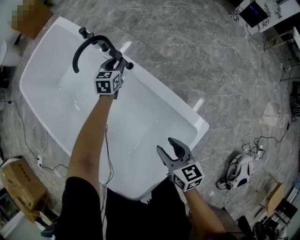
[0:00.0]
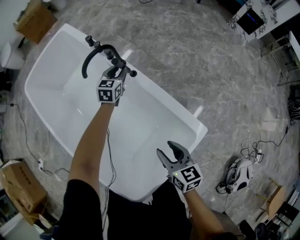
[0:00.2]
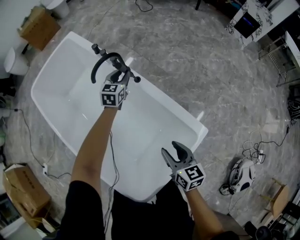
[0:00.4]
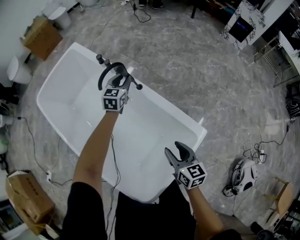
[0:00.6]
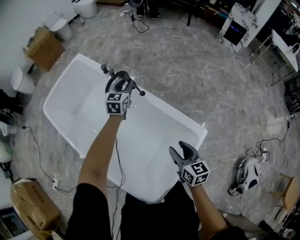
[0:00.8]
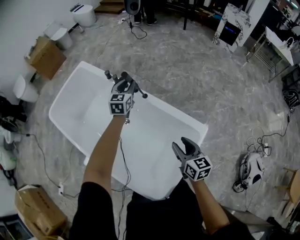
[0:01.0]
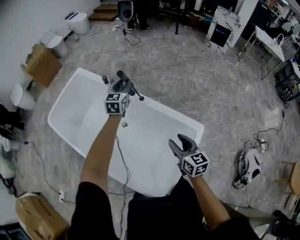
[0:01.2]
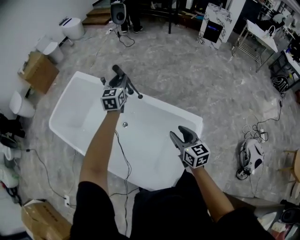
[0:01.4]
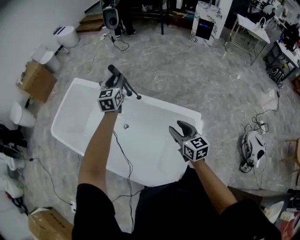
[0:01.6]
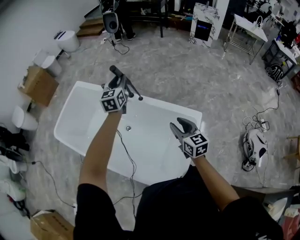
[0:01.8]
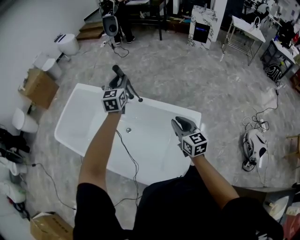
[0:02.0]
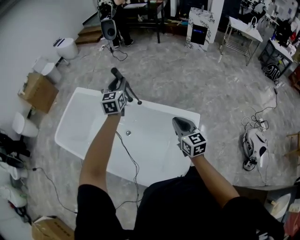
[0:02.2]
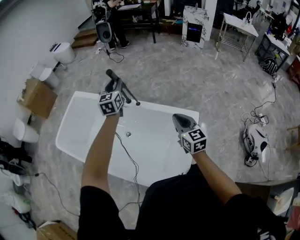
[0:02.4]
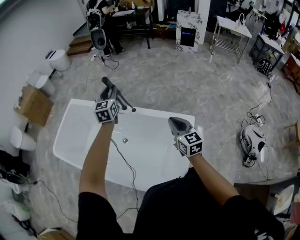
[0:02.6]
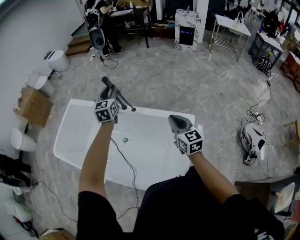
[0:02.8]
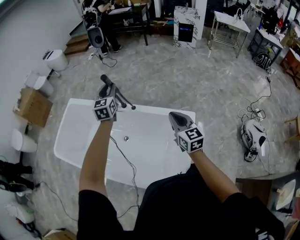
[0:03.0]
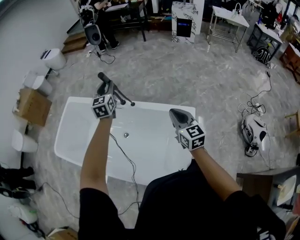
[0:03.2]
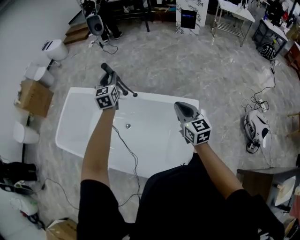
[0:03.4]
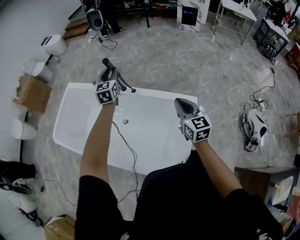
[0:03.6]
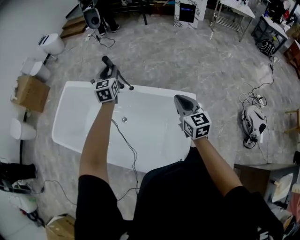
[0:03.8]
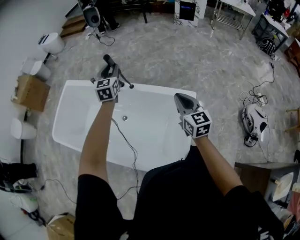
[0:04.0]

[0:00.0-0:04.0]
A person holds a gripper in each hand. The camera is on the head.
0.0 to 1.4 s: The left gripper is displaced upward by roughly 40 cm, and turns by approximately 20 degrees, while the right gripper shifts roughly 25 cm upward, and turns by approximately 20 degrees.
1.4 to 2.6 s: The right gripper moves upward, approximately 10 cm, and closes. The left gripper heads upward and backward, covering roughly 10 cm.
2.6 to 4.0 s: The left gripper ends up roughly 5 cm from where it was.

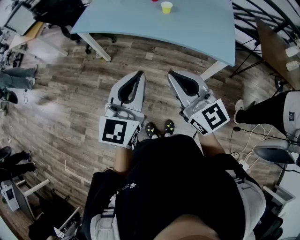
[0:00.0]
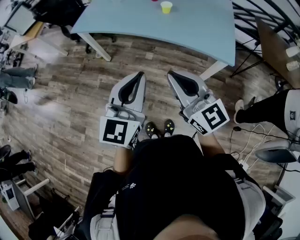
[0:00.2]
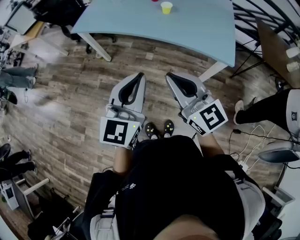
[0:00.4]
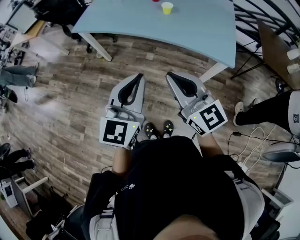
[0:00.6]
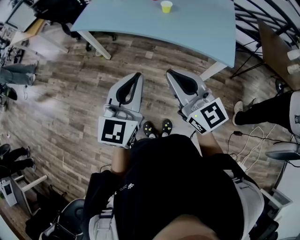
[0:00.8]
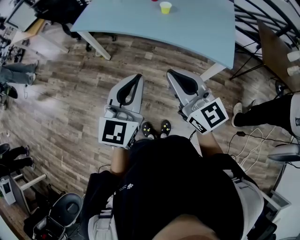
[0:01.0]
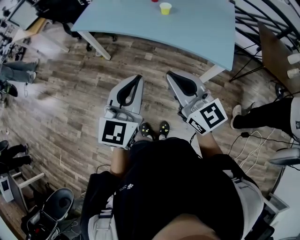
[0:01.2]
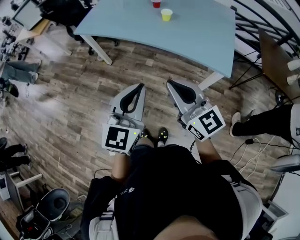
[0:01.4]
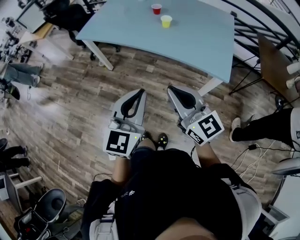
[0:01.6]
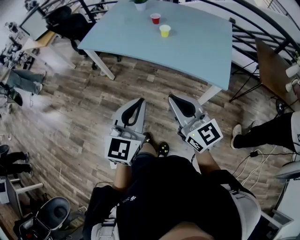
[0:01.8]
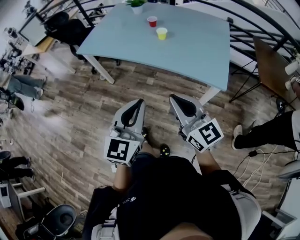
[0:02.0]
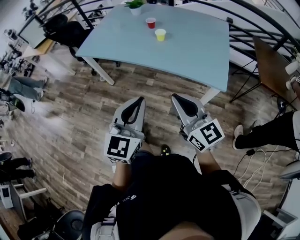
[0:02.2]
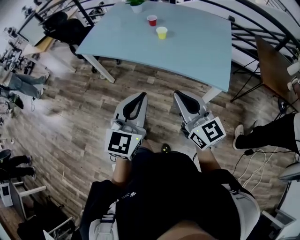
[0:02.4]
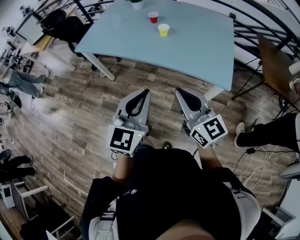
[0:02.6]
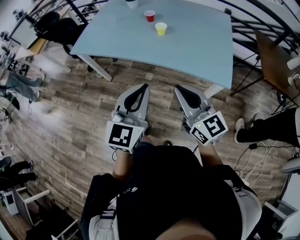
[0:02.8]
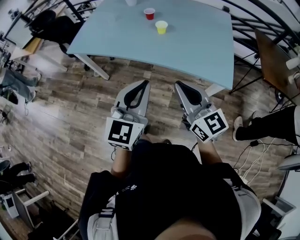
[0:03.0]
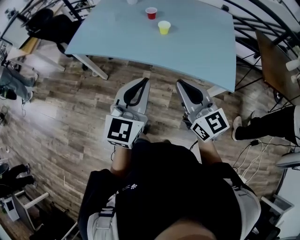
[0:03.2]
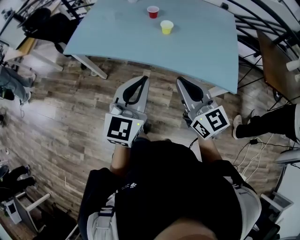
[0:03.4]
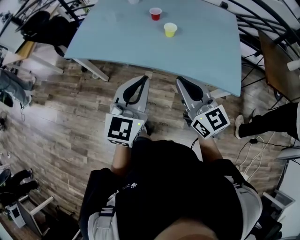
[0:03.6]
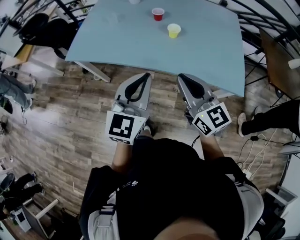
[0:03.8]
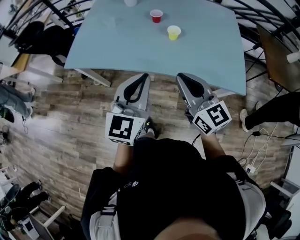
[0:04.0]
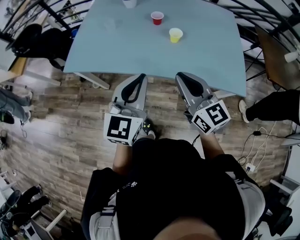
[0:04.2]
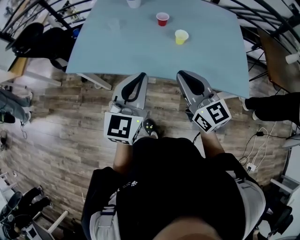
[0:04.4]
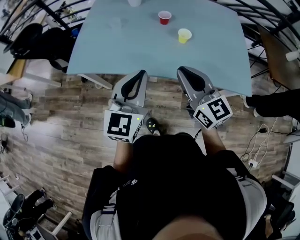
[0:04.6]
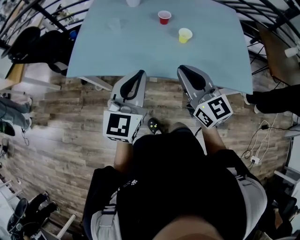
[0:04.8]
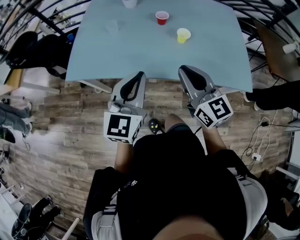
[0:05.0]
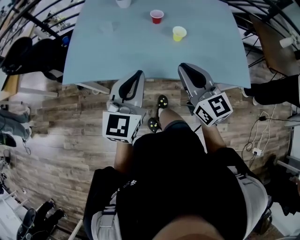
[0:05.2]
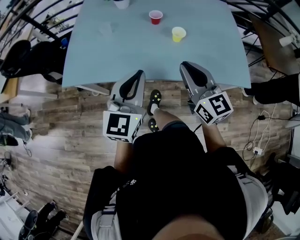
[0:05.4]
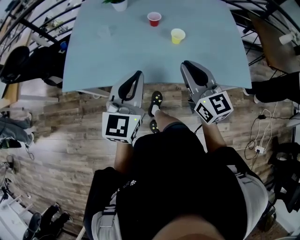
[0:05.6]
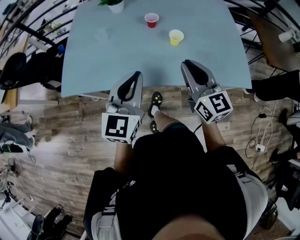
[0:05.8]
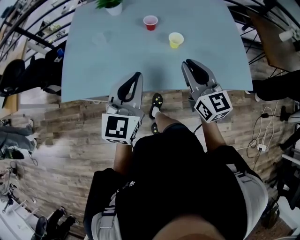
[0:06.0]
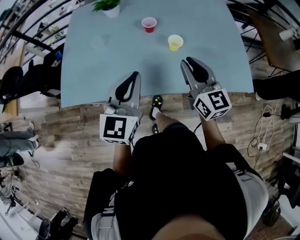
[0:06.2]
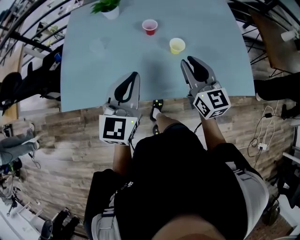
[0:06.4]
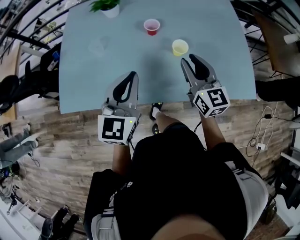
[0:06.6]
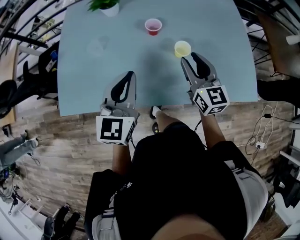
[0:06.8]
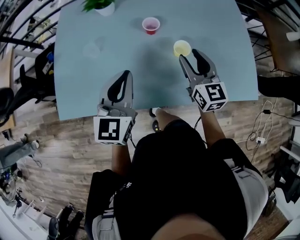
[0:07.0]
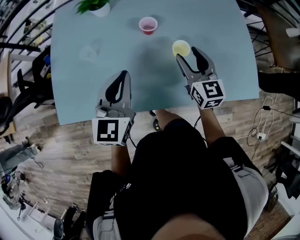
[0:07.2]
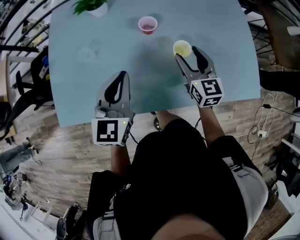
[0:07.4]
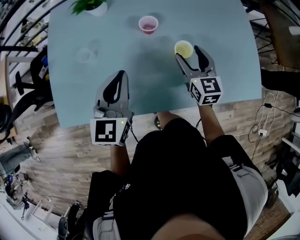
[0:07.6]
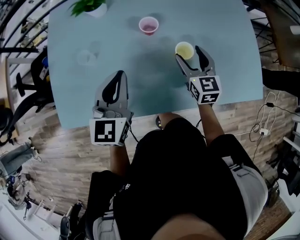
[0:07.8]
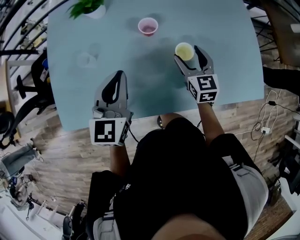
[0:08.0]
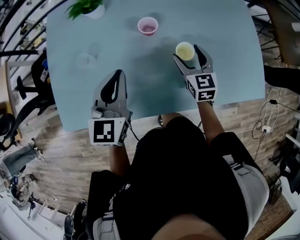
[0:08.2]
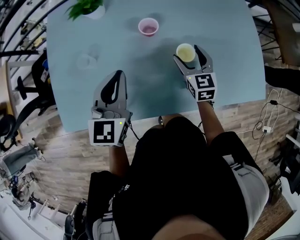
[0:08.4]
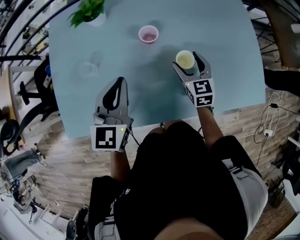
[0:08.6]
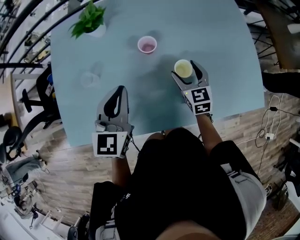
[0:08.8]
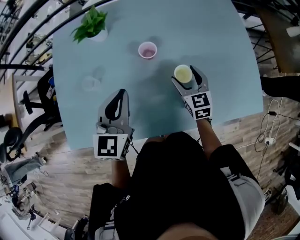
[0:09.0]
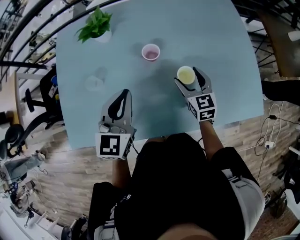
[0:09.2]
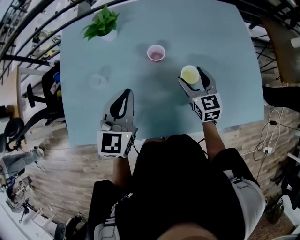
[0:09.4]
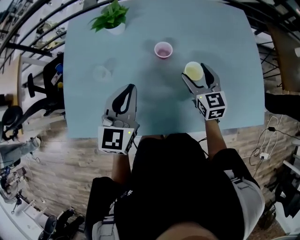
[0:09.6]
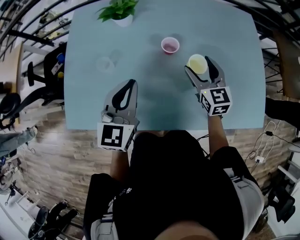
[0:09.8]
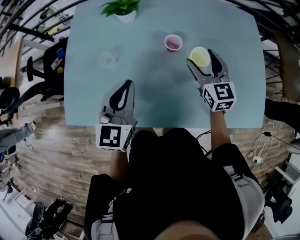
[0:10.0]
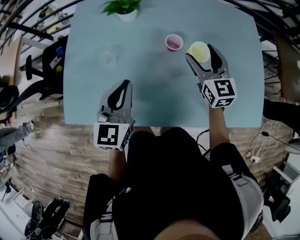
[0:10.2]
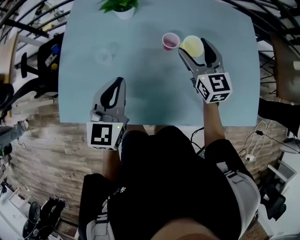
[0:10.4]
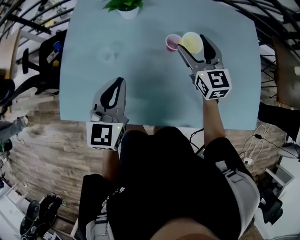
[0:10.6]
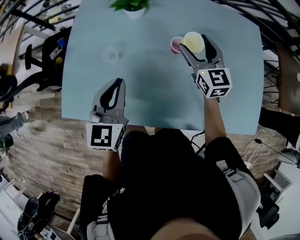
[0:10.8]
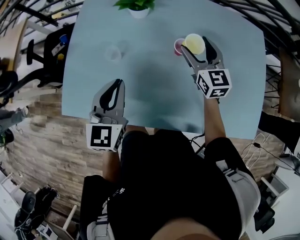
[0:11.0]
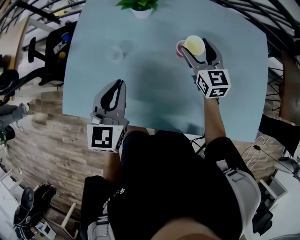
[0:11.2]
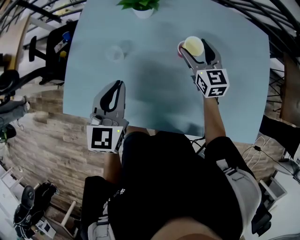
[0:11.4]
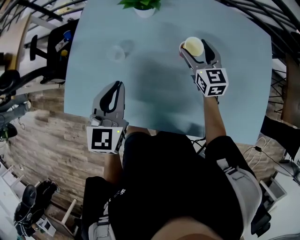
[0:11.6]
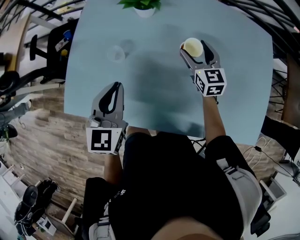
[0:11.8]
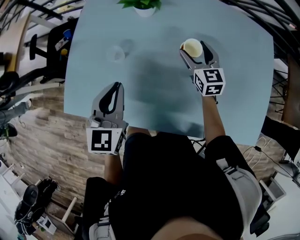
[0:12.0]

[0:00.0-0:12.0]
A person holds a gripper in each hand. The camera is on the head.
0.0 to 1.6 s: Both grippers move to the right, roughly 5 cm.
1.6 to 3.0 s: The grippers both shift forward by approximately 10 cm.
3.0 to 4.4 s: Both grippers move forward and to the left, approximately 25 cm.
4.4 to 6.0 s: Both grippers move forward, roughly 10 cm.
6.0 to 7.6 s: The right gripper moves forward and downward, roughly 25 cm, and opens. Meanwhile the left gripper goes about 20 cm forward.
7.6 to 9.0 s: The right gripper changes place by about 5 cm.
9.0 to 10.4 s: The left gripper shifts some 10 cm to the left, while the right gripper travels upward, to the left and forward by approximately 15 cm.
10.4 to 12.0 s: The right gripper is displaced downward and forward by about 10 cm.

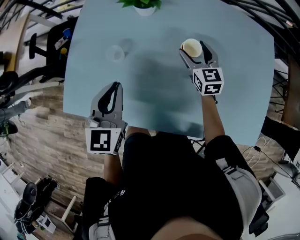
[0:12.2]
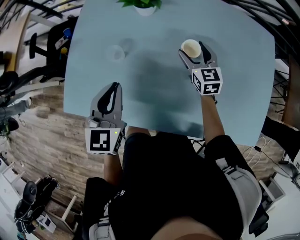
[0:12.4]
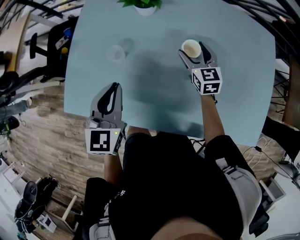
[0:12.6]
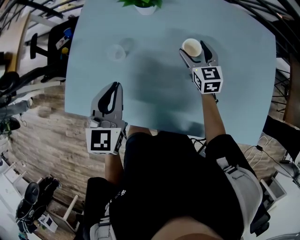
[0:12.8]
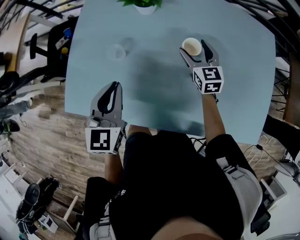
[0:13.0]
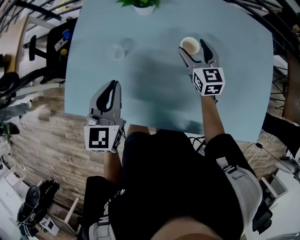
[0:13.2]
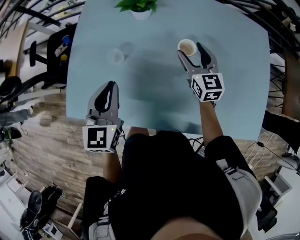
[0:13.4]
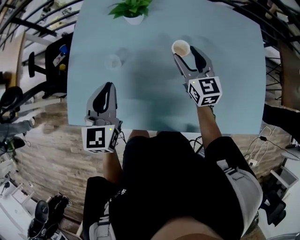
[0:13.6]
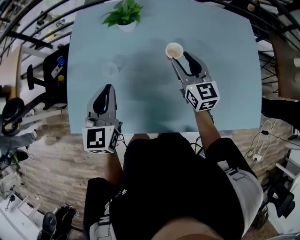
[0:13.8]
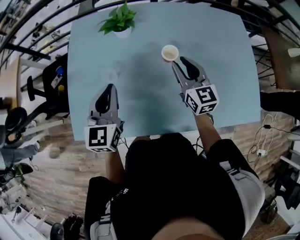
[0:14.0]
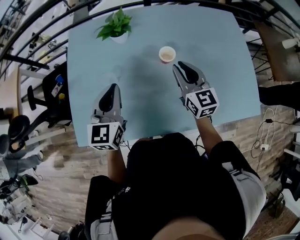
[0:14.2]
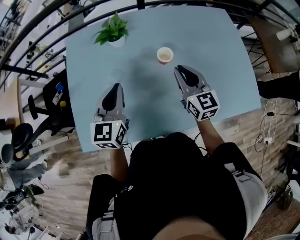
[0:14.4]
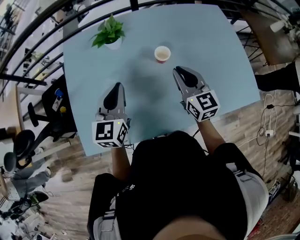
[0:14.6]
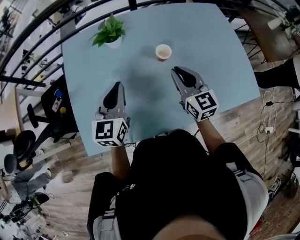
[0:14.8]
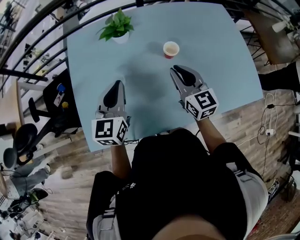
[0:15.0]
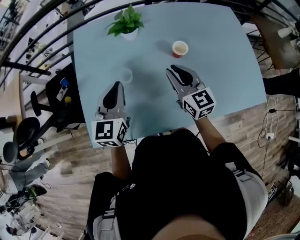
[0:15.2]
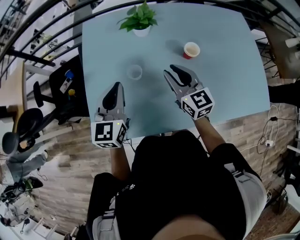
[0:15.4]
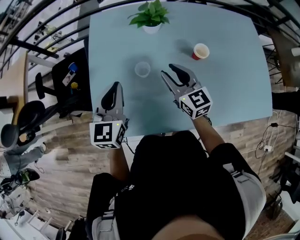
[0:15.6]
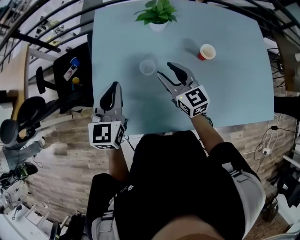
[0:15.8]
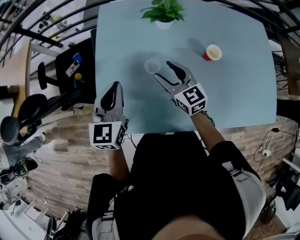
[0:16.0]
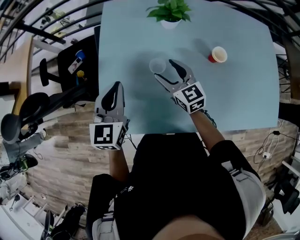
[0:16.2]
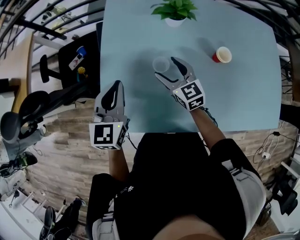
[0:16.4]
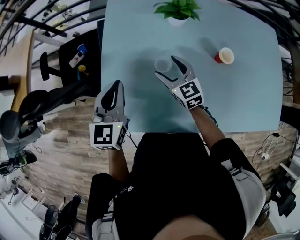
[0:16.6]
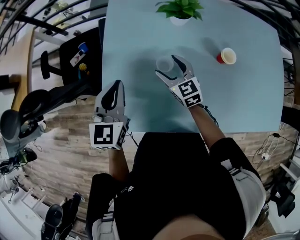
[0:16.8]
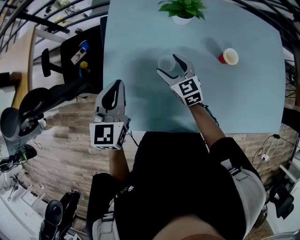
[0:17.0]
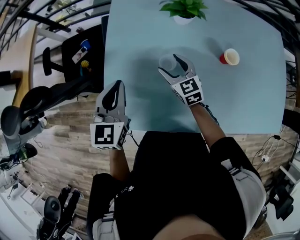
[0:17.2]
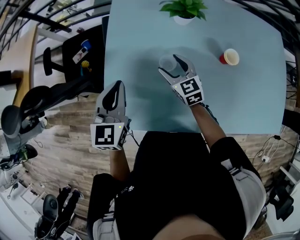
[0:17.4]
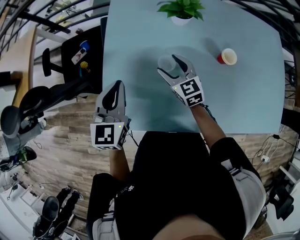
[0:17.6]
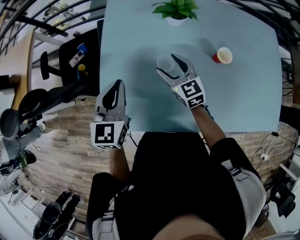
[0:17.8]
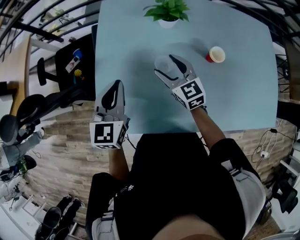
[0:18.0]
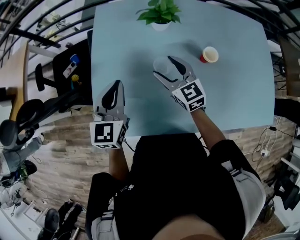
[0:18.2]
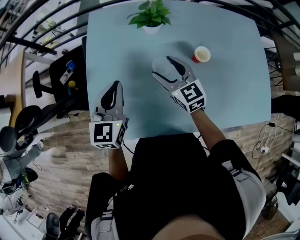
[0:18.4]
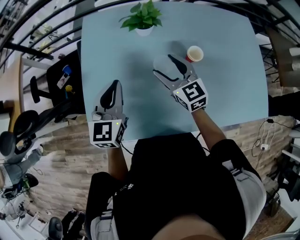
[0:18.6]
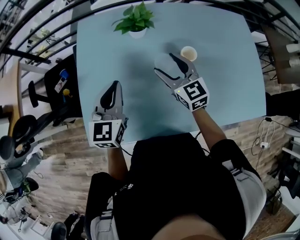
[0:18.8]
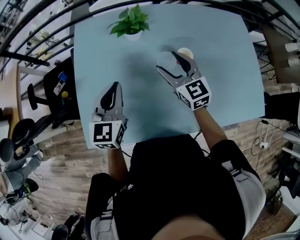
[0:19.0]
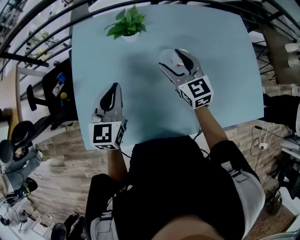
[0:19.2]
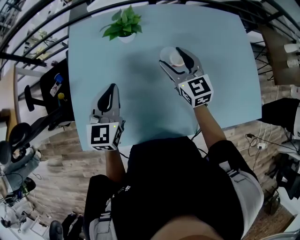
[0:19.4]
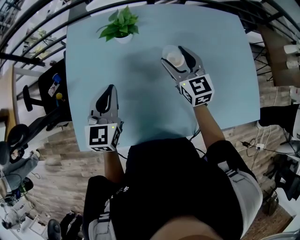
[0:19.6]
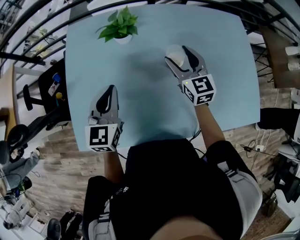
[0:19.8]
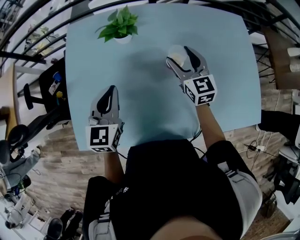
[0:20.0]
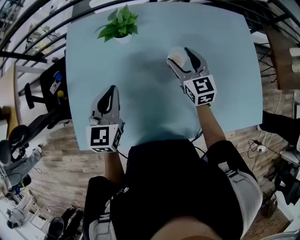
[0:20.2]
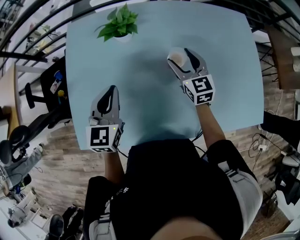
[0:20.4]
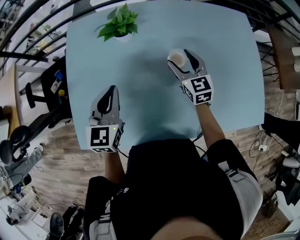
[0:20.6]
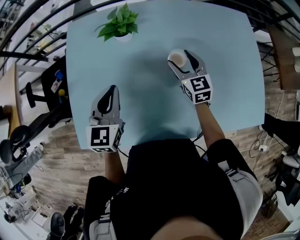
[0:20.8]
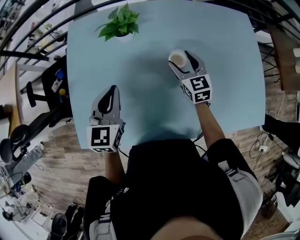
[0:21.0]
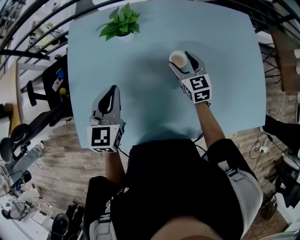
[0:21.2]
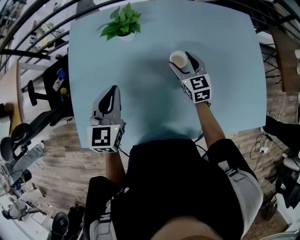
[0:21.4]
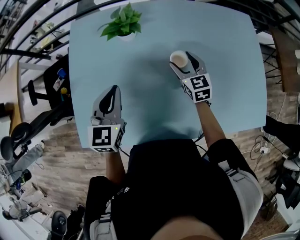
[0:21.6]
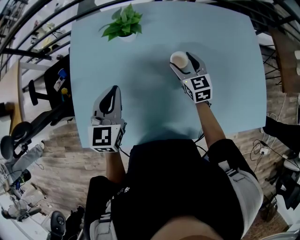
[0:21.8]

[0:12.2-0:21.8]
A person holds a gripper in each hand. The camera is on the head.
12.2 to 13.8 s: The right gripper moves upward and backward, about 10 cm, and closes.
13.8 to 15.4 s: The left gripper travels to the left by approximately 10 cm; the right gripper moves to the left, some 15 cm.
15.4 to 17.0 s: The left gripper travels to the left by some 10 cm, while the right gripper heads to the left, downward and forward, covering some 20 cm, rotates some 20 degrees, and opens its fingers.
17.0 to 18.6 s: The right gripper shifts roughly 15 cm to the right and upward. Meanwhile the left gripper heads to the right, covering some 10 cm.
18.6 to 20.2 s: The left gripper heads to the right, covering approximately 10 cm. Meanwhile the right gripper goes approximately 15 cm to the right.
20.2 to 21.8 s: The right gripper moves downward, approximately 5 cm.
